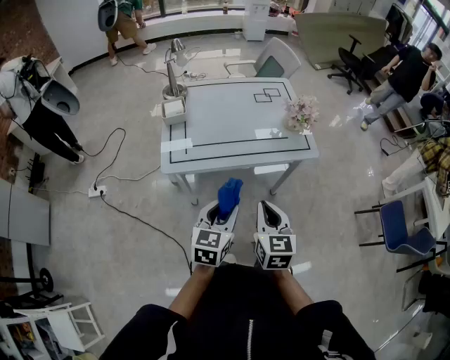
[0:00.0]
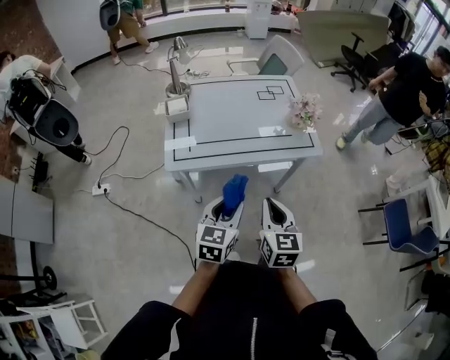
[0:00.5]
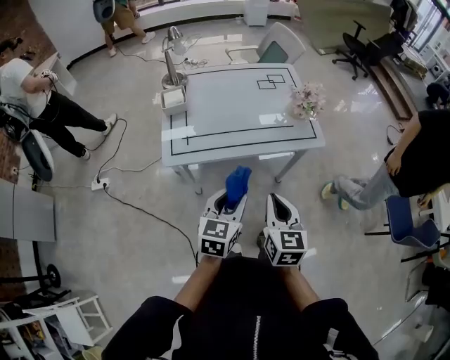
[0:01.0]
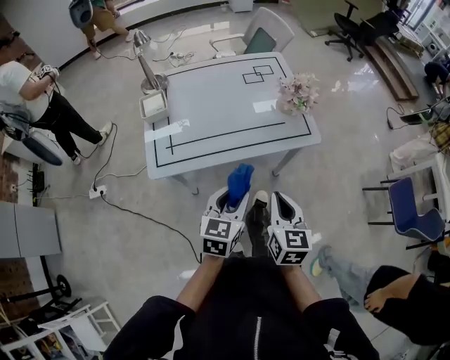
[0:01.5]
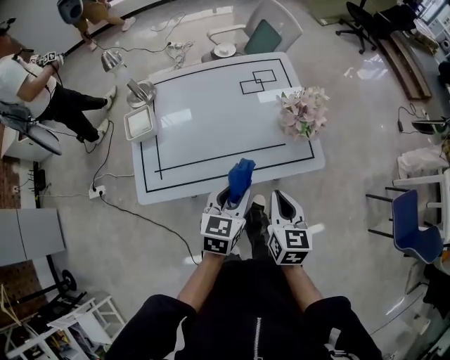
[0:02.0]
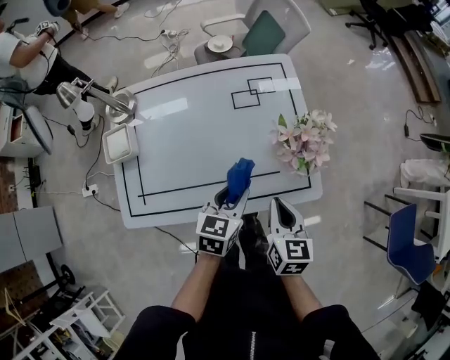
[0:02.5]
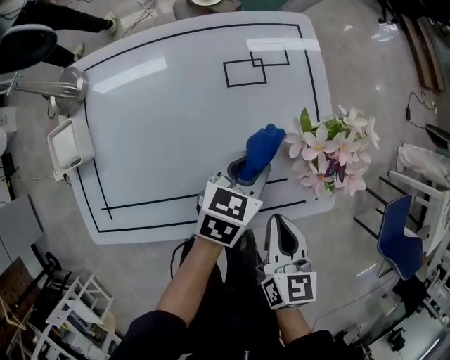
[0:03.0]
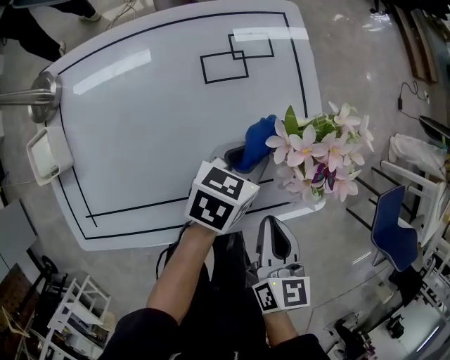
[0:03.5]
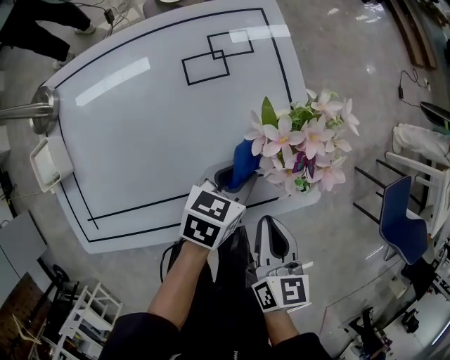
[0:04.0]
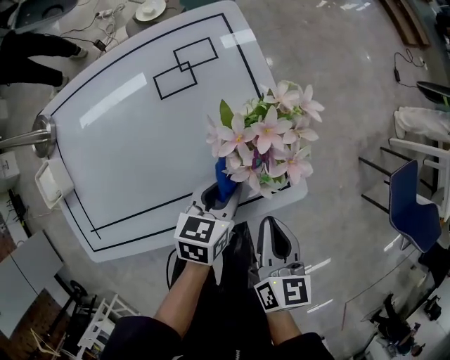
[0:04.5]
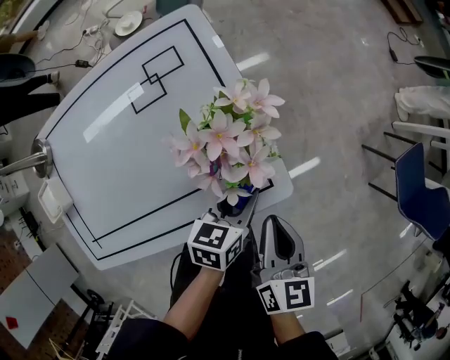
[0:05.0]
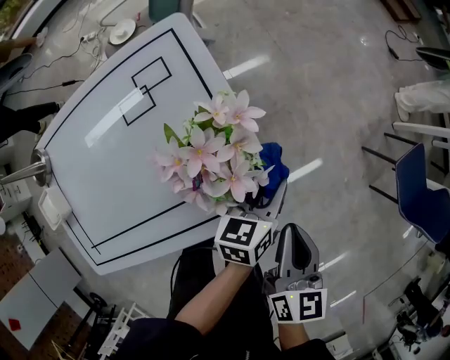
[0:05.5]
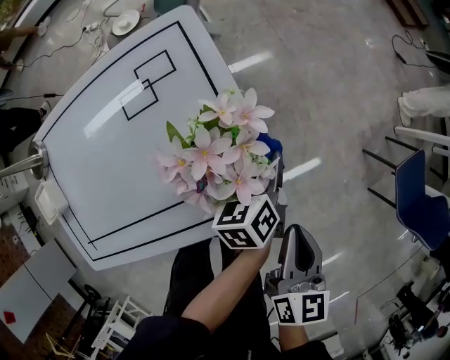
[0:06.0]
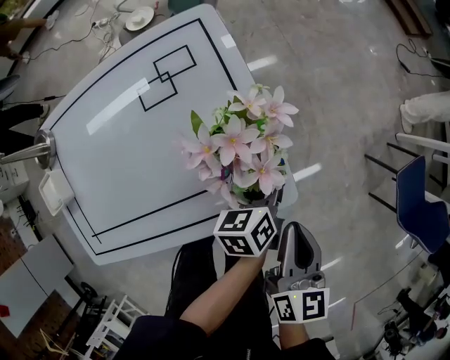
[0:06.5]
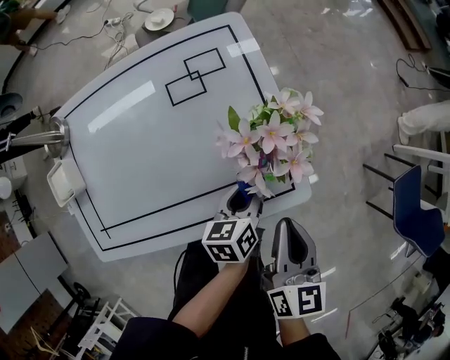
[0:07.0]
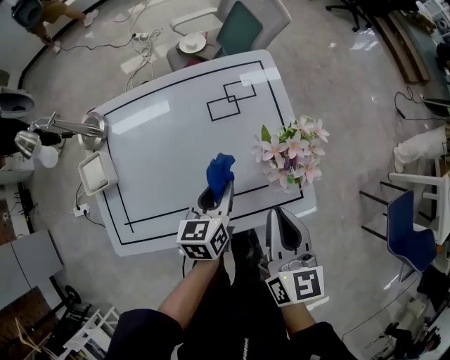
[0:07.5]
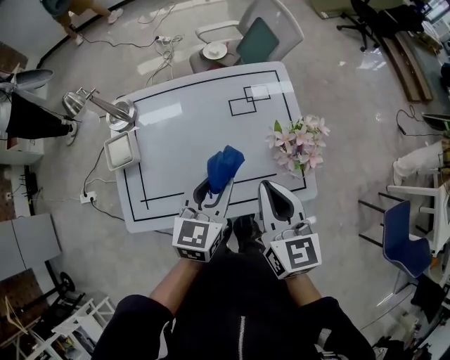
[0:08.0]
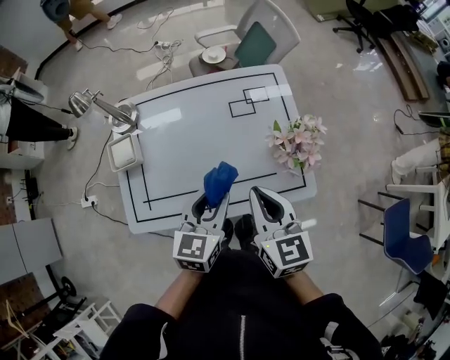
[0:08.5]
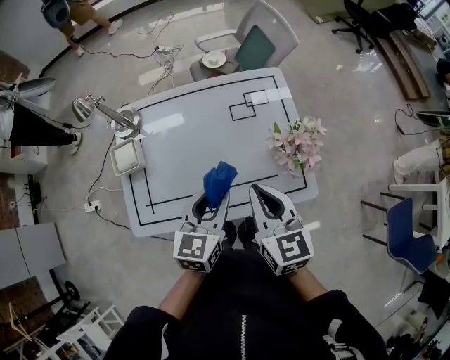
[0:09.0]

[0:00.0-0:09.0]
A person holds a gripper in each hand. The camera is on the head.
0:00.0 to 0:02.0: Both grippers move forward, about 20 cm.
0:02.0 to 0:04.5: The right gripper moves to the right and upward, approximately 10 cm, travels forward and back again, some 10 cm each way, and swivels roughly 20 degrees, while the left gripper moves to the right, about 10 cm, reaches approximately 10 cm forward, then returns, and turns by some 20 degrees.
0:04.5 to 0:07.0: The left gripper travels to the right and back again, some 15 cm each way, and swivels approximately 20 degrees; the right gripper heads upward, covering some 5 cm, and goes to the right and returns, approximately 10 cm each way.
0:07.0 to 0:09.0: The right gripper is displaced to the left and upward by approximately 25 cm, and rotates approximately 30 degrees; the left gripper goes roughly 30 cm upward and to the left, and rotates about 40 degrees.

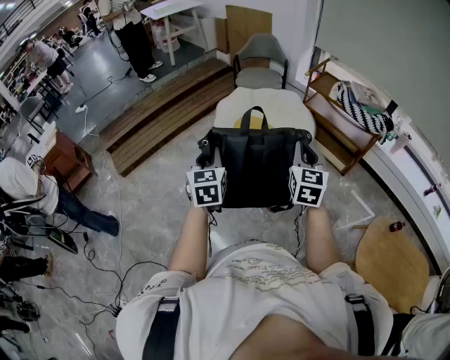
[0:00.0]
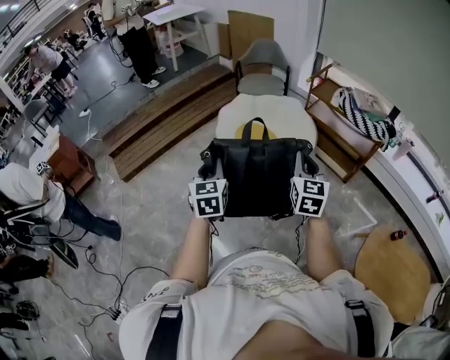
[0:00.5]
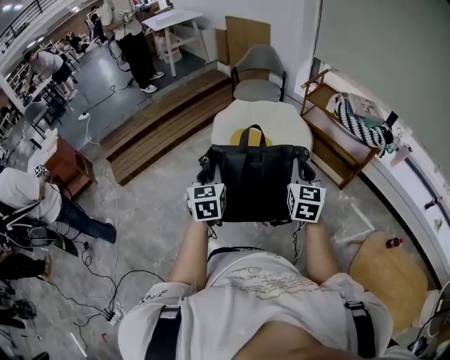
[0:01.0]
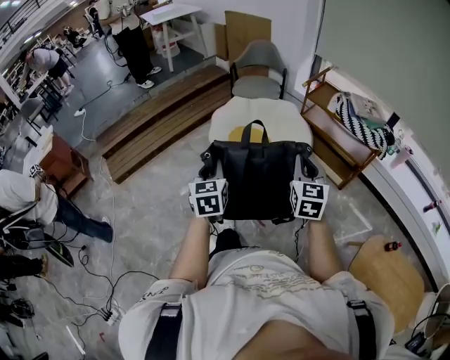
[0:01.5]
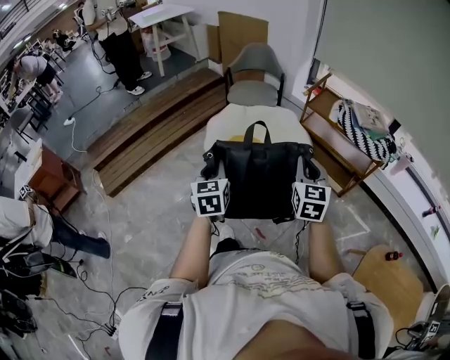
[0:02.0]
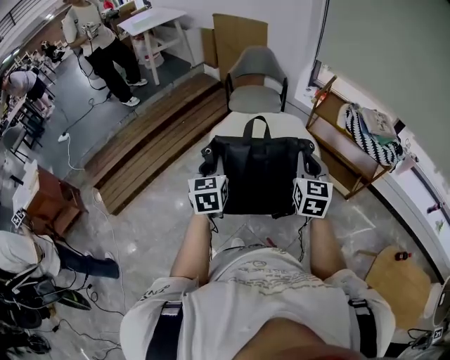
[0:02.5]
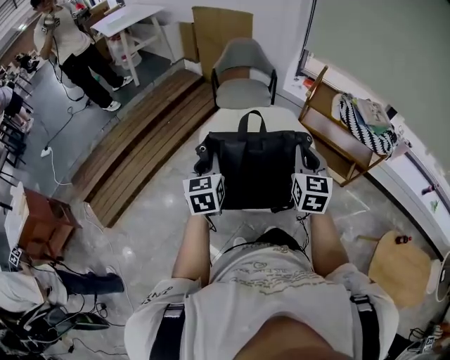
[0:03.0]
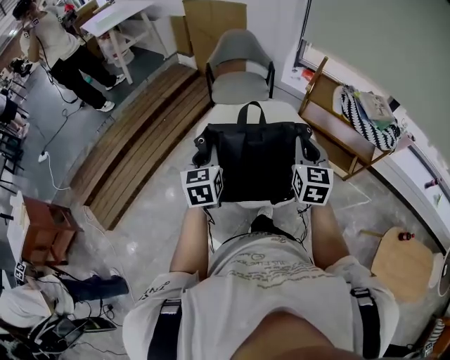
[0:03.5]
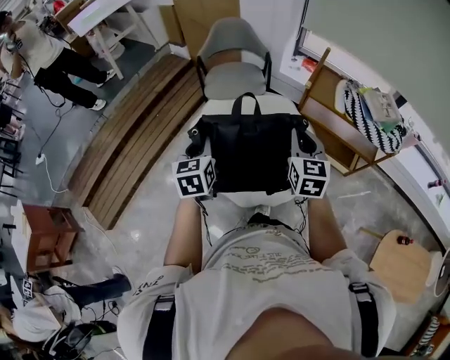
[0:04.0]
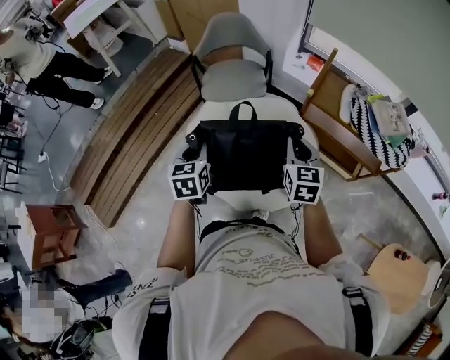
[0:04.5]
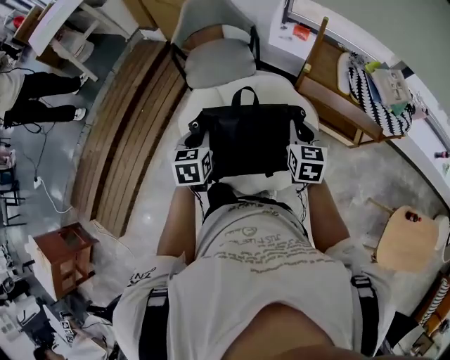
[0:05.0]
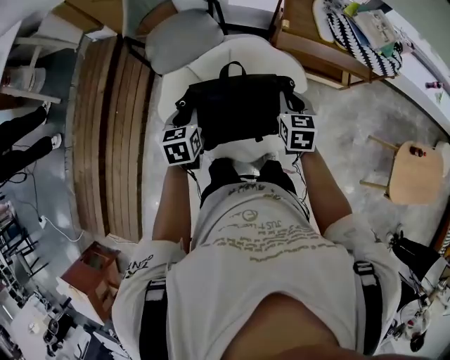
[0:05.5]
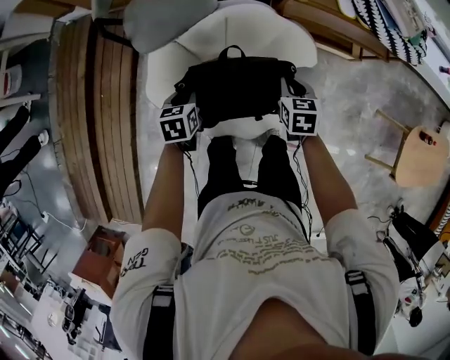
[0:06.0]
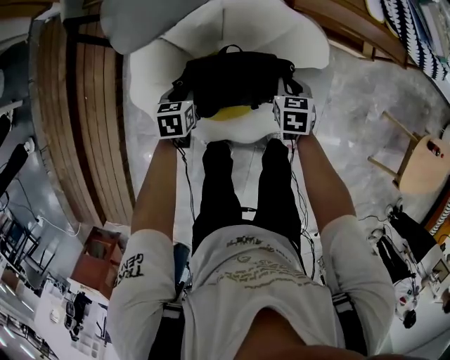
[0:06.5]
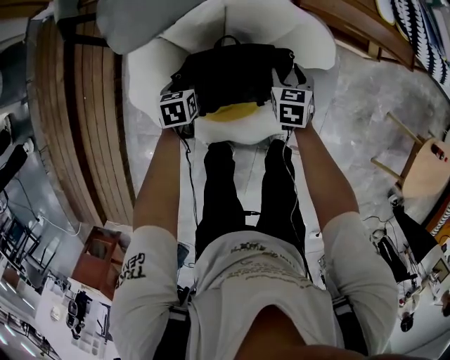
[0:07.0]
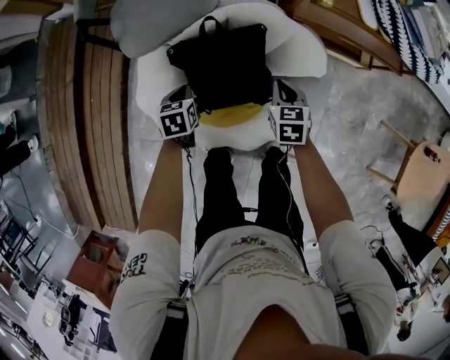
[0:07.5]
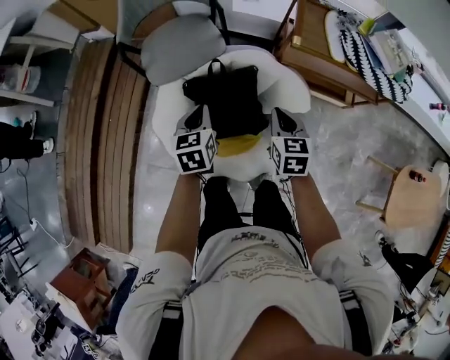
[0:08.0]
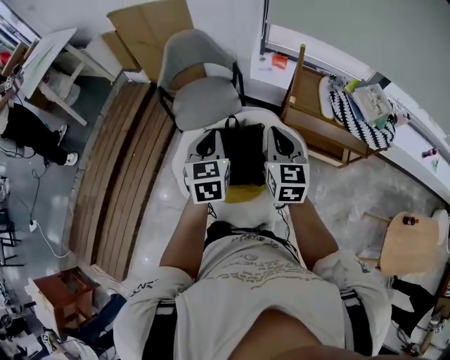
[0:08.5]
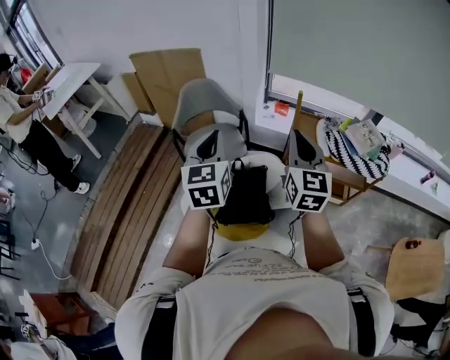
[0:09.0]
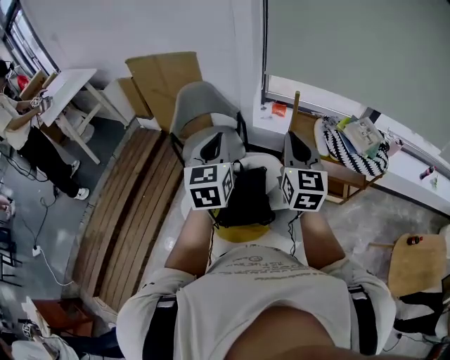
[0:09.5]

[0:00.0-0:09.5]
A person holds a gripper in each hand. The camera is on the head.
0:00.0 to 0:02.0: The grippers both shift forward by roughly 15 cm.
0:02.0 to 0:04.0: The two grippers go roughly 30 cm forward.
0:04.0 to 0:05.5: The right gripper shifts some 20 cm downward and forward, and swivels some 30 degrees; the left gripper travels forward and downward by roughly 25 cm, and turns by roughly 30 degrees.
0:05.5 to 0:07.5: The grippers both shift downward by roughly 25 cm. The right gripper opens, then closes once more.
0:07.5 to 0:09.5: The two grippers go roughly 60 cm upward. The left gripper tips its fingers upward by some 50 degrees. Meanwhile the right gripper tilts its fingers roughly 50 degrees upward.

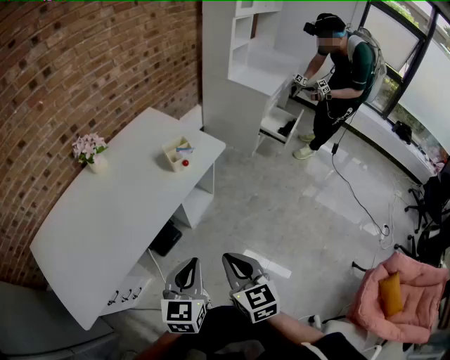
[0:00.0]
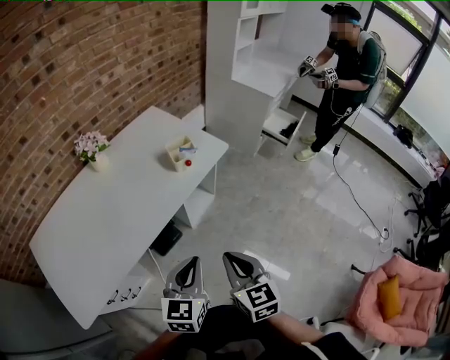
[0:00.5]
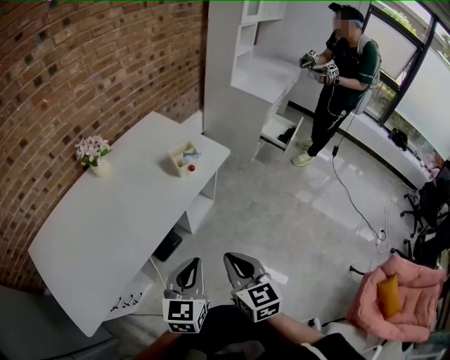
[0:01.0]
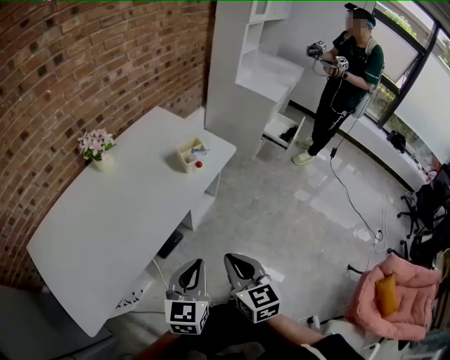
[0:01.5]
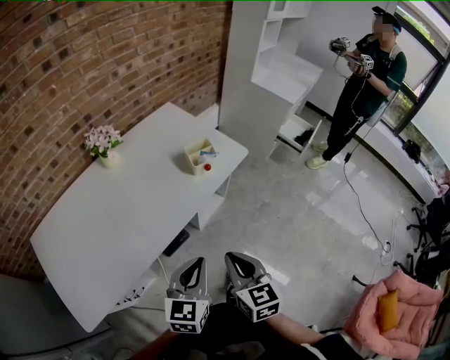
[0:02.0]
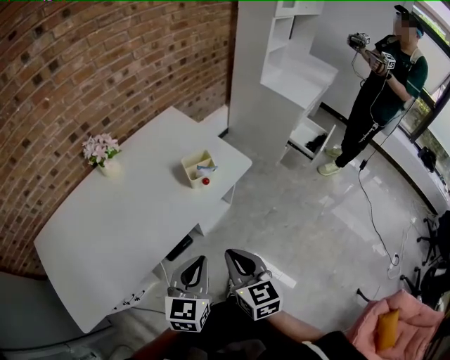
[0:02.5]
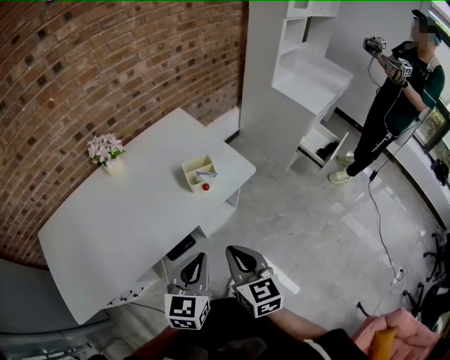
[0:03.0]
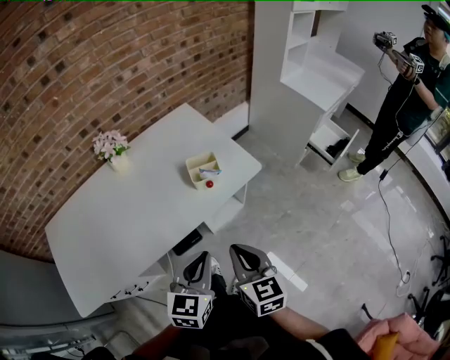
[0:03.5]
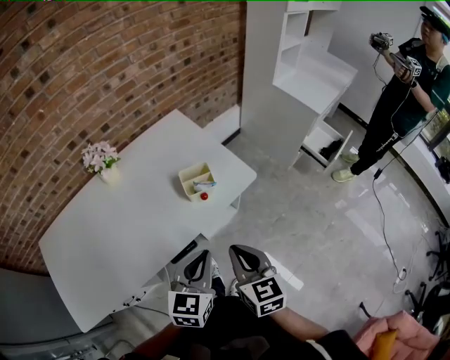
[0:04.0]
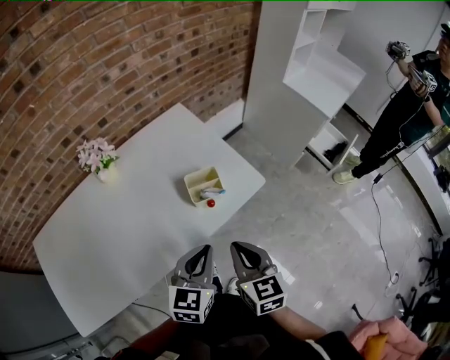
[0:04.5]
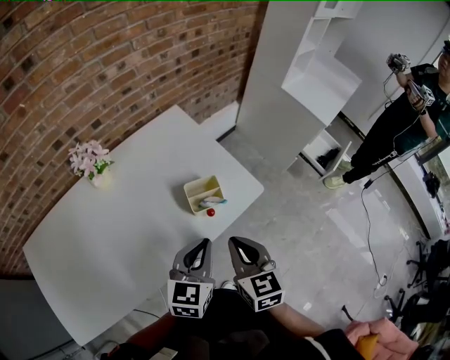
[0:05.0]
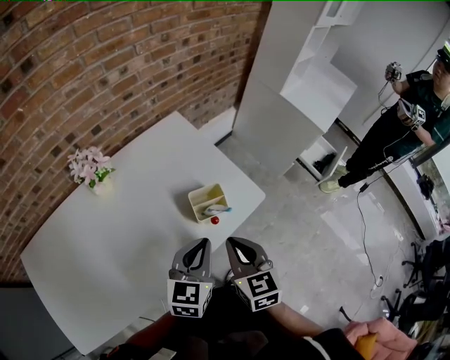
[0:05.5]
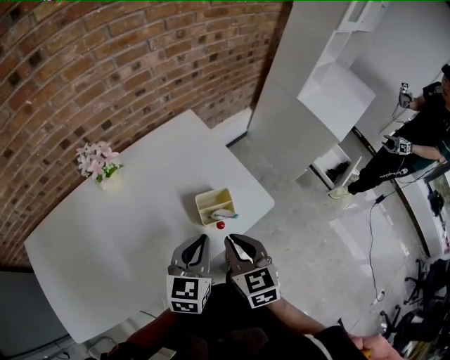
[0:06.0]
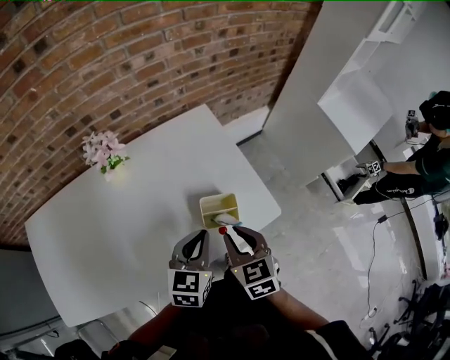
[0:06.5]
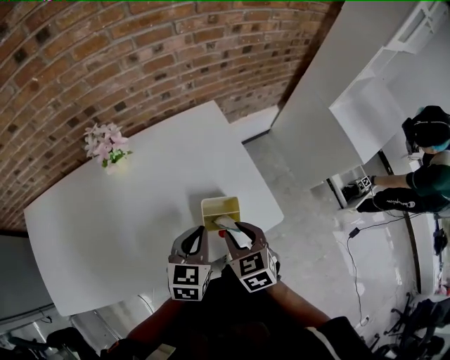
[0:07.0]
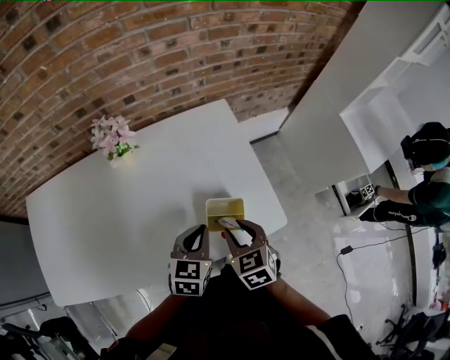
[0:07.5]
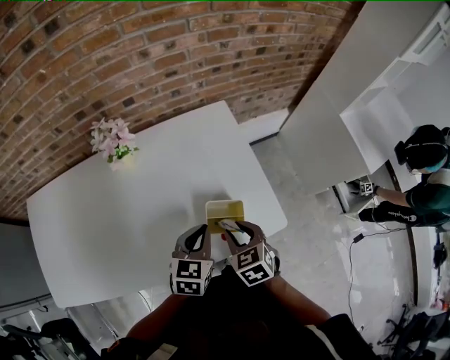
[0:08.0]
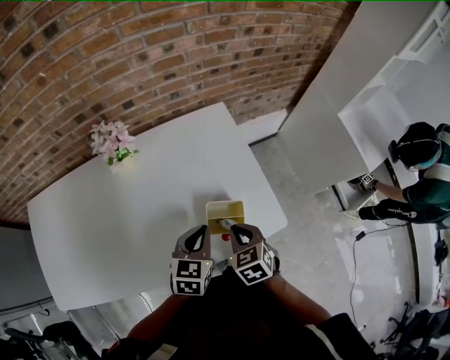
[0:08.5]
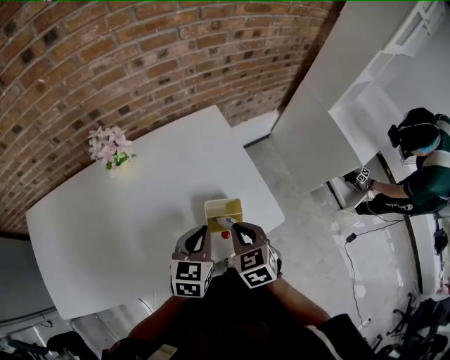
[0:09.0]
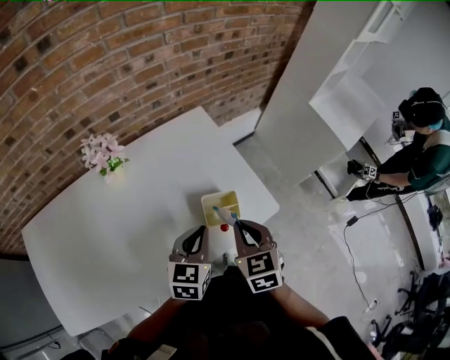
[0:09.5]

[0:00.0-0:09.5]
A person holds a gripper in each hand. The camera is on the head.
0:00.0 to 0:02.0: Both grippers travel together forward and to the left, some 10 cm.
0:02.0 to 0:04.0: The two grippers go approximately 20 cm forward and to the right.
0:04.0 to 0:05.5: The right gripper shifts approximately 15 cm forward and to the left. Meanwhile the left gripper moves forward, approximately 15 cm.
0:05.5 to 0:07.5: The right gripper moves forward and downward, roughly 15 cm, swivels roughly 30 degrees, and opens; the left gripper is displaced downward and forward by approximately 15 cm, and swivels roughly 20 degrees.
0:07.5 to 0:09.5: The right gripper moves upward, about 5 cm, and closes its fingers.
